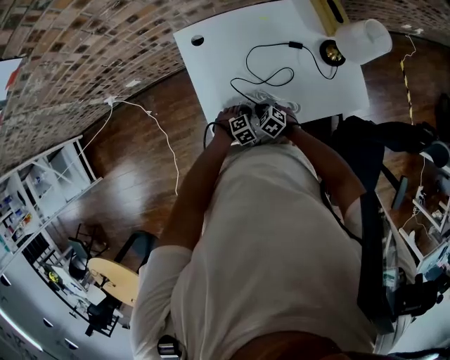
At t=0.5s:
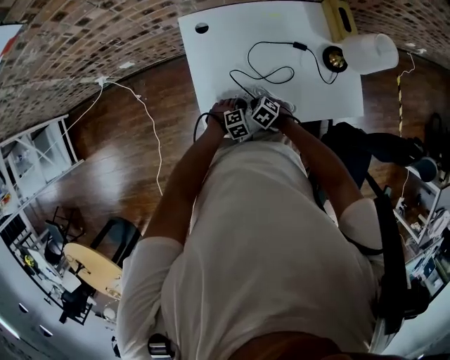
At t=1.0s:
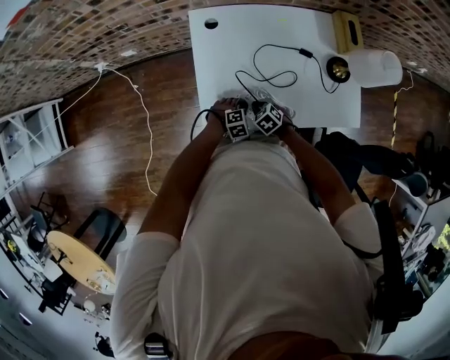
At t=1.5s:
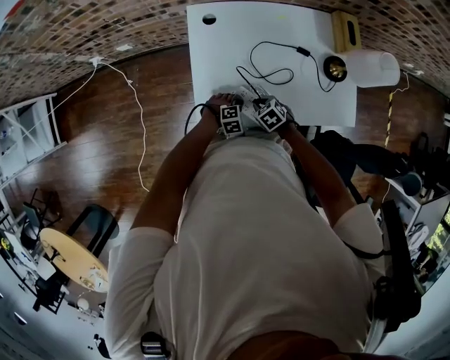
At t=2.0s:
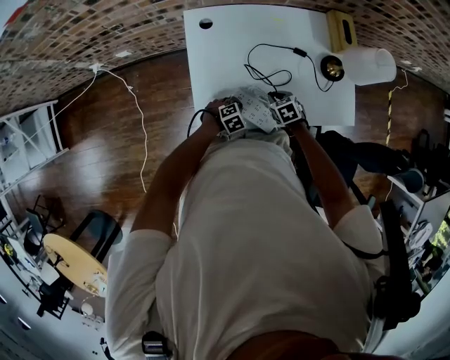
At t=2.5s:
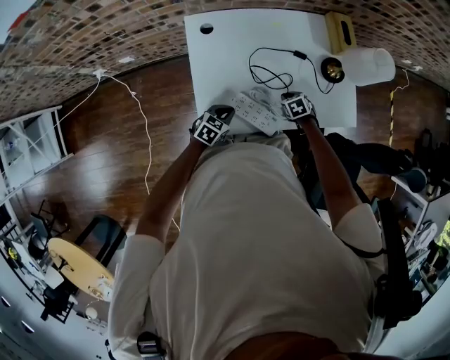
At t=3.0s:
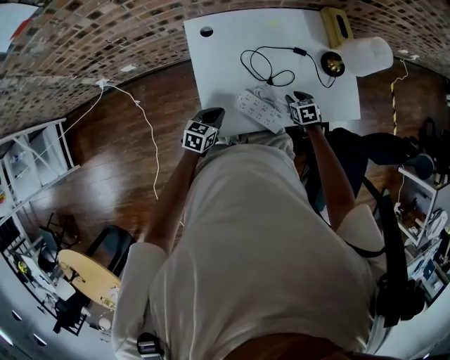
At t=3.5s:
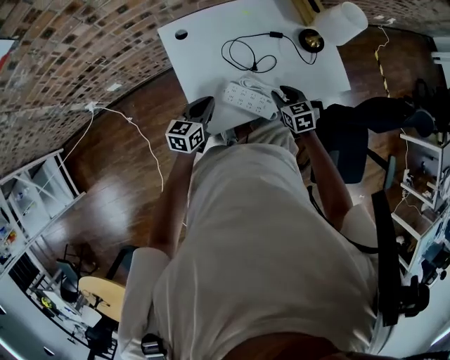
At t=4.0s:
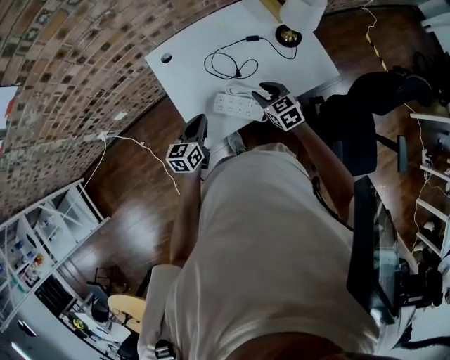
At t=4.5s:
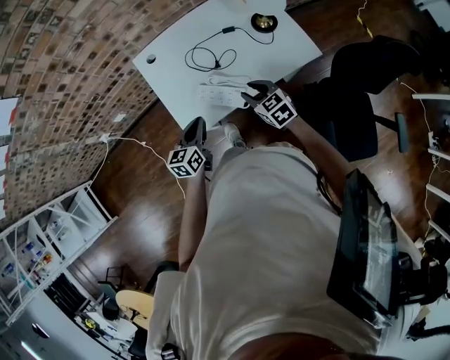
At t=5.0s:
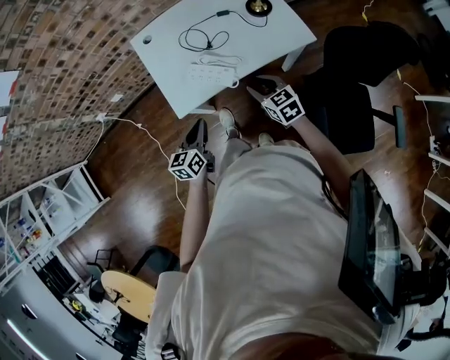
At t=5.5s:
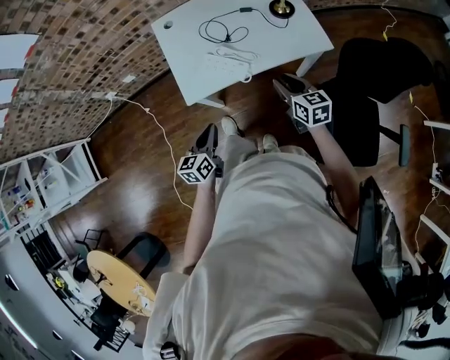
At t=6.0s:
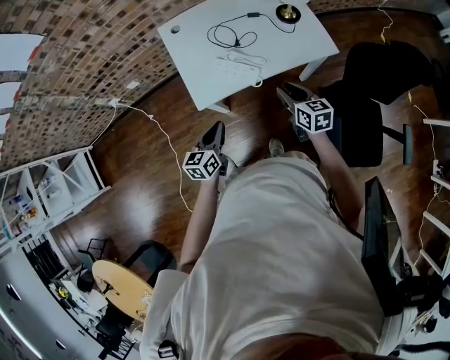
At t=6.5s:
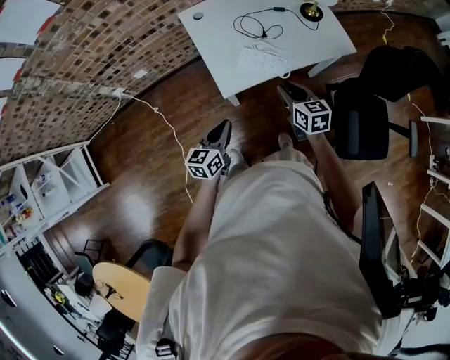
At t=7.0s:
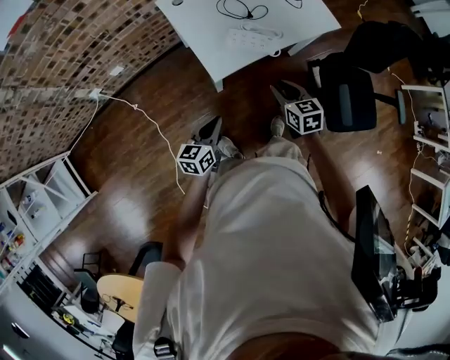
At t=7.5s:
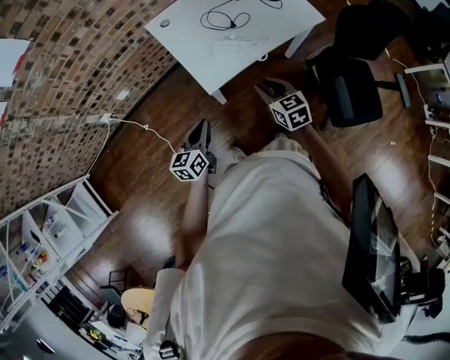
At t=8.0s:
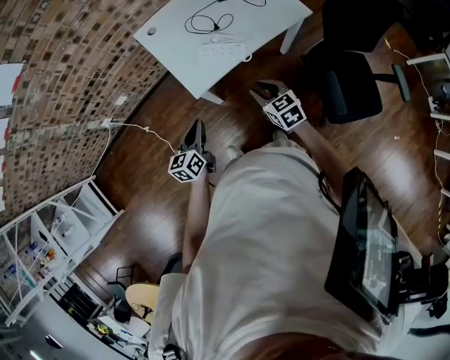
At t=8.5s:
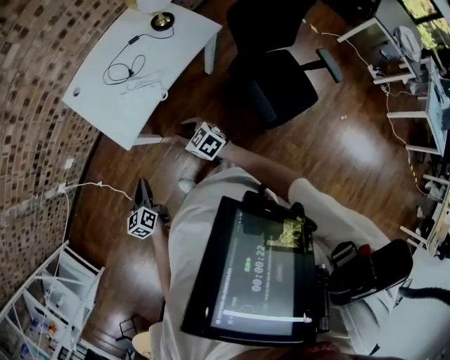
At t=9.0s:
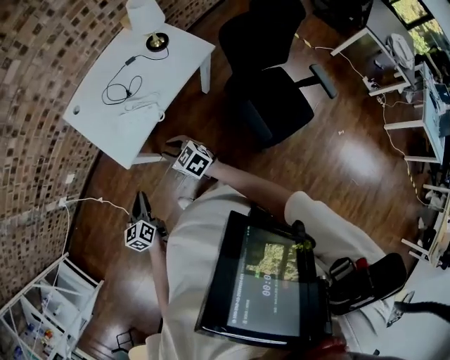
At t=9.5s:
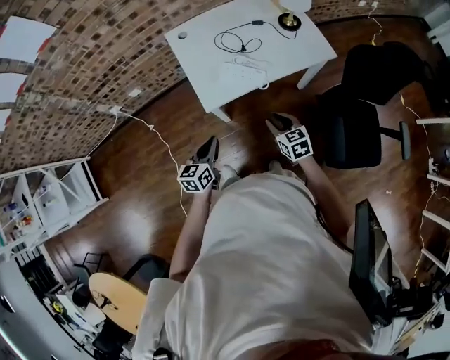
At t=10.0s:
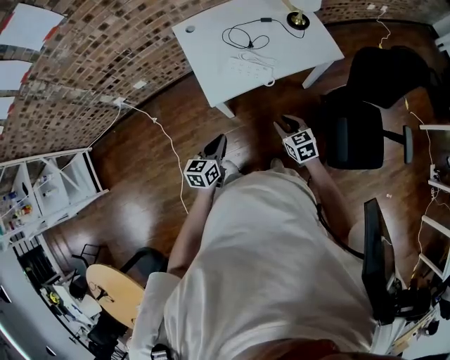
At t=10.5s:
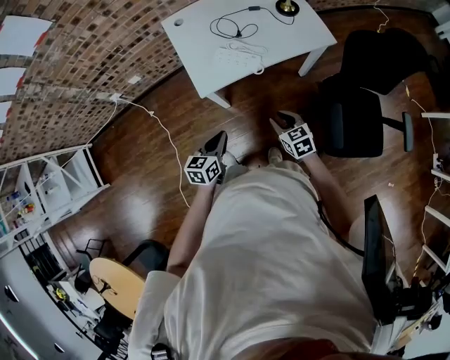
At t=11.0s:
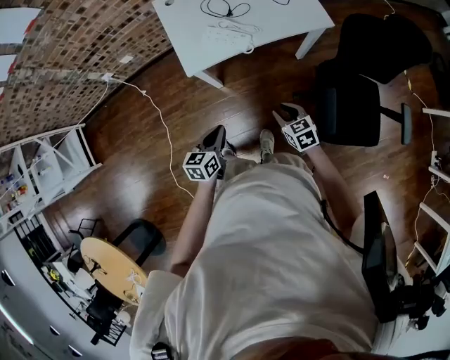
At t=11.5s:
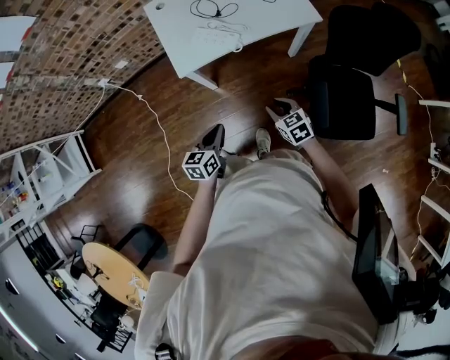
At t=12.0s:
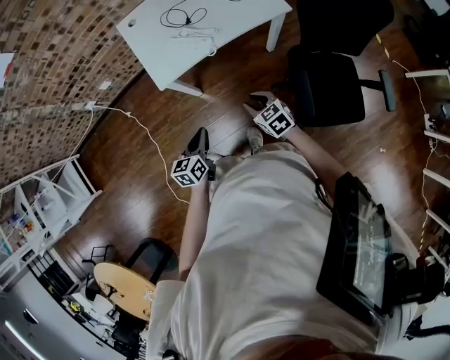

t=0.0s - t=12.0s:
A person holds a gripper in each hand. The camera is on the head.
t=0.0s - t=2.0s: The right gripper changes place by roughly 10 cm.
t=2.0s - t=4.0s: Both grippers travel together upward, some 20 cm. The right gripper changes its angle by roughly 30 degrees, and opens up; the left gripper points its fingers about 40 degrees further upward.
t=4.0s - t=6.0s: The right gripper heads backward and to the right, covering roughly 20 cm, and turns by some 20 degrees. Meanwhile the left gripper shifts roughly 25 cm backward.
t=6.0s - t=8.0s: The right gripper heads to the left and backward, covering about 15 cm. The left gripper heads to the left, covering some 10 cm.
t=8.0s - t=10.0s: The left gripper ends up approximately 5 cm from where it was. The right gripper shifts by approximately 5 cm.
t=10.0s - t=12.0s: The left gripper goes about 15 cm to the right and backward. Meanwhile the right gripper travels backward and to the right by about 15 cm.

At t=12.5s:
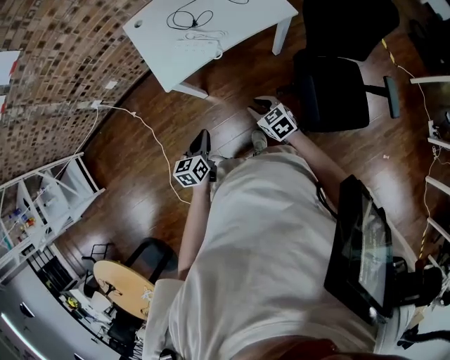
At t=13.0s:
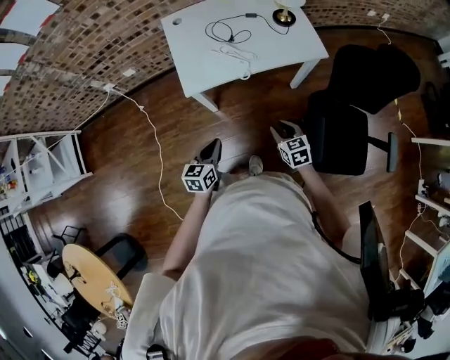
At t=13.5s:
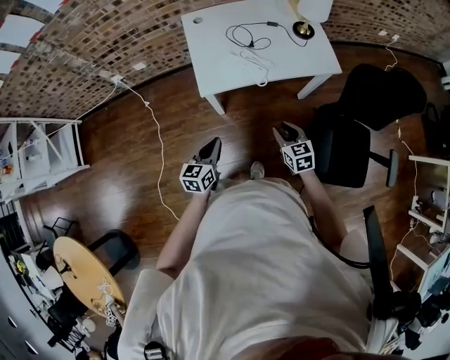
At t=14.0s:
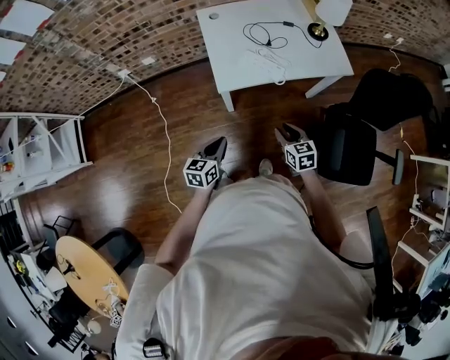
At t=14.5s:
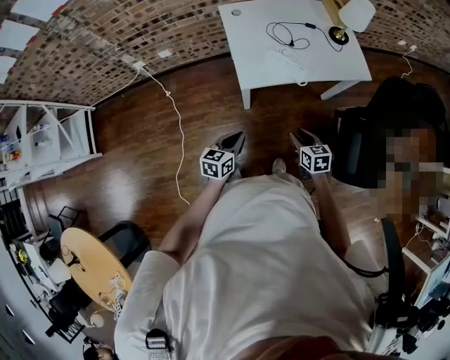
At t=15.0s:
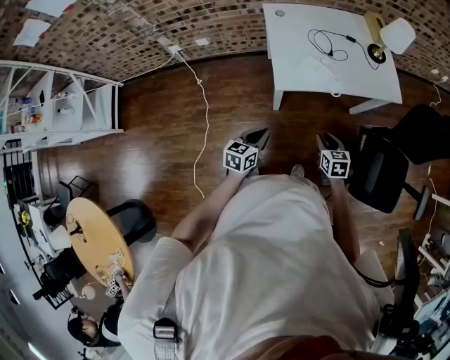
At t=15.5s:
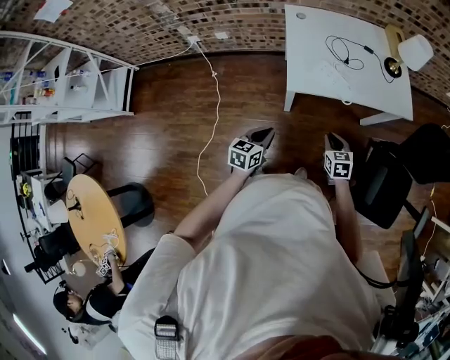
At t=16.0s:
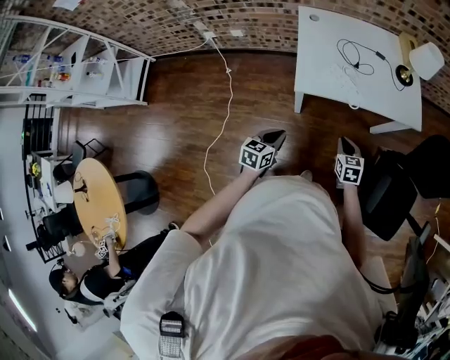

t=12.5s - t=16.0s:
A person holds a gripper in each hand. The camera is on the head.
t=12.5s - t=14.5s: Both grippers move to the left, roughly 15 cm.
t=14.5s - t=16.0s: The right gripper heads forward, covering roughly 5 cm, and closes up.

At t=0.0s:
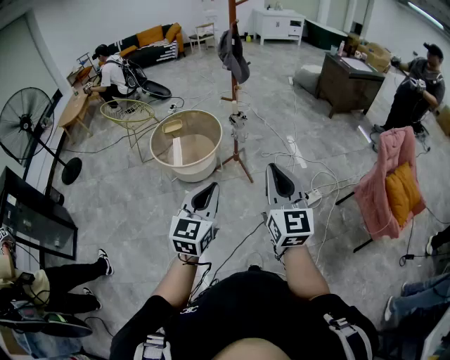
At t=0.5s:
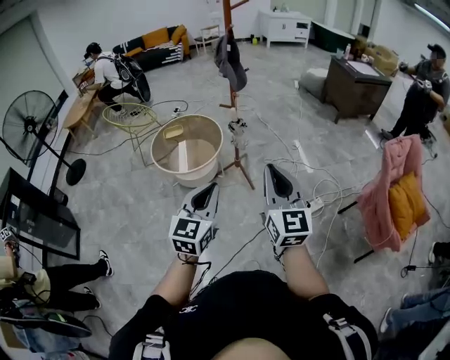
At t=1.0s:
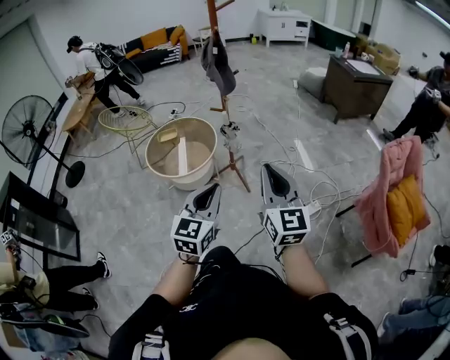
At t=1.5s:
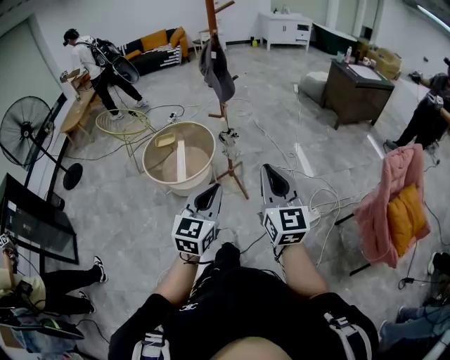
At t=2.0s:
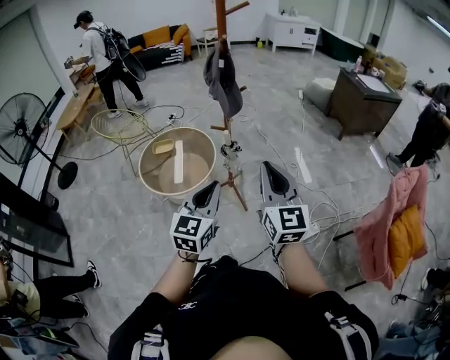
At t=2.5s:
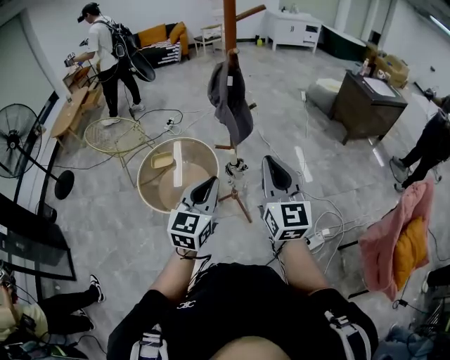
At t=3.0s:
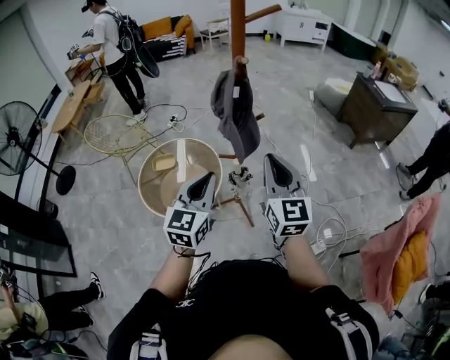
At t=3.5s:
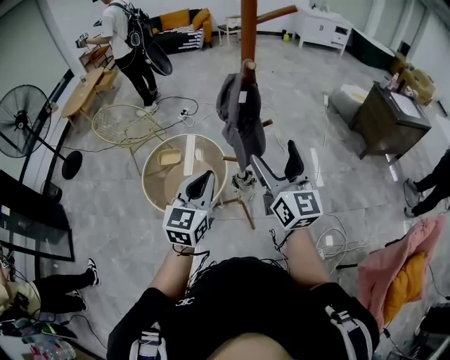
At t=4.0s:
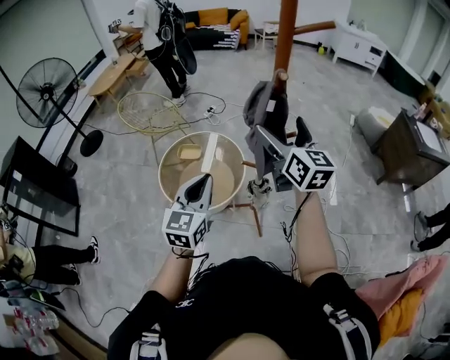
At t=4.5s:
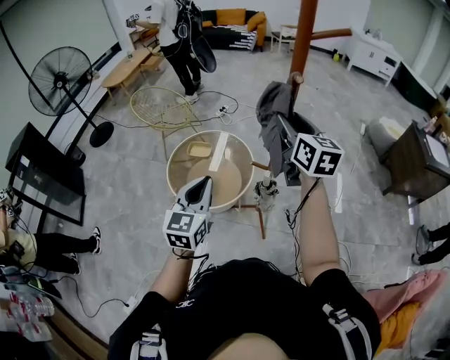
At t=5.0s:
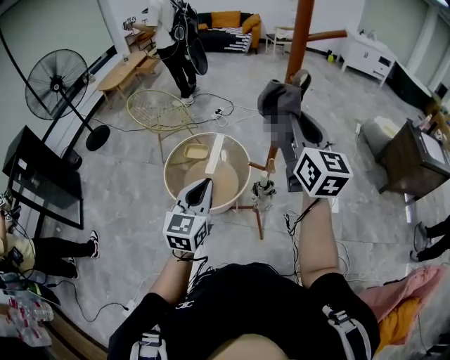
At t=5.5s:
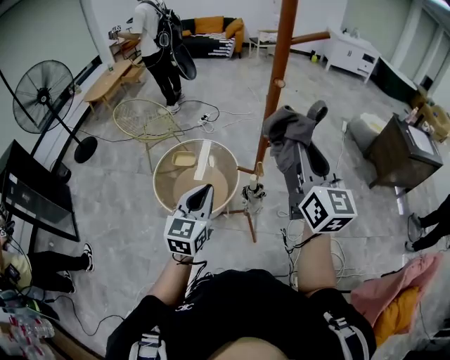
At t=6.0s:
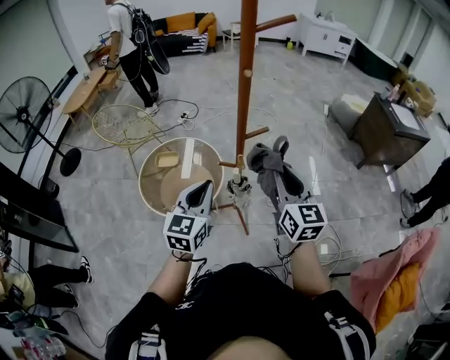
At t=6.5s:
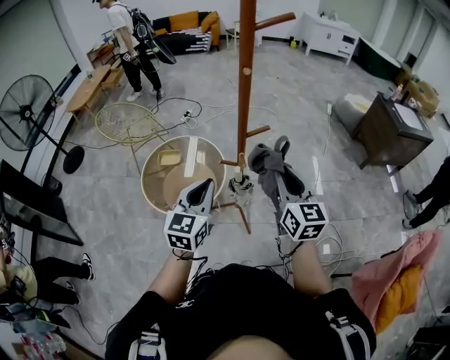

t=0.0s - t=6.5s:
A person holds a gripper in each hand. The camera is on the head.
t=0.0s - t=2.0s: Both grippers travel together forward, about 35 cm.
t=2.0s - t=4.5s: The left gripper heads forward, covering about 35 cm, and swivels approximately 20 degrees; the right gripper is displaced forward by roughly 50 cm, swivels about 30 degrees, and opens, then closes again.
t=4.5s - t=6.5s: The right gripper moves backward, to the right and downward, about 20 cm; the left gripper is displaced to the right by about 10 cm.

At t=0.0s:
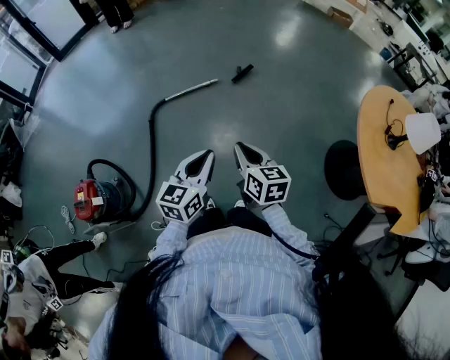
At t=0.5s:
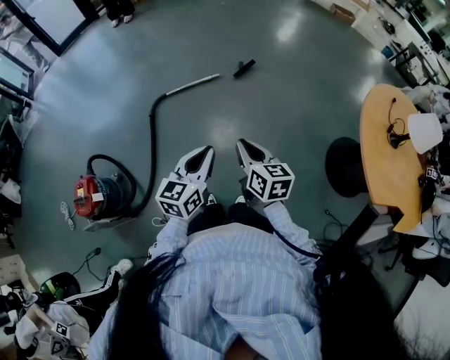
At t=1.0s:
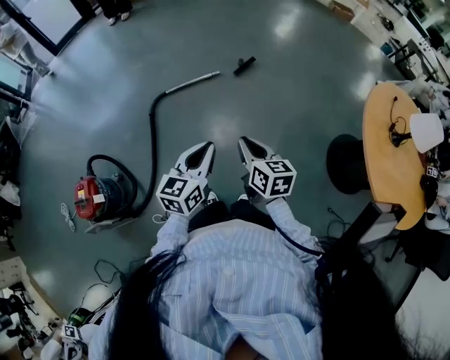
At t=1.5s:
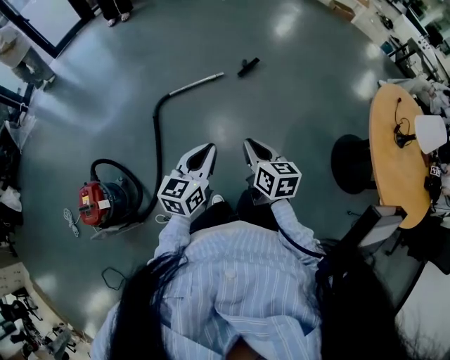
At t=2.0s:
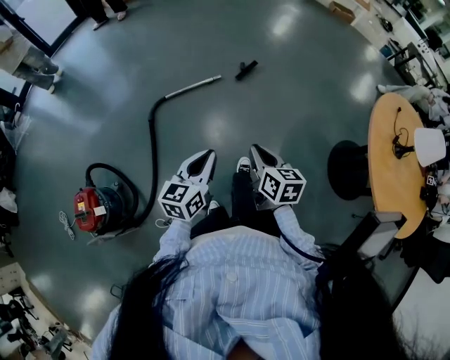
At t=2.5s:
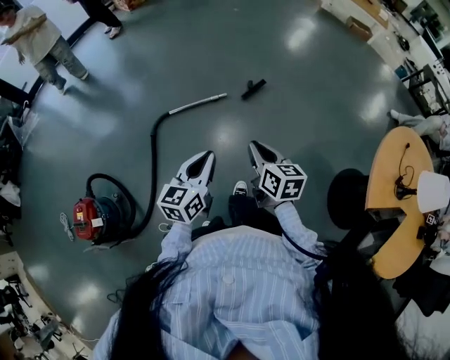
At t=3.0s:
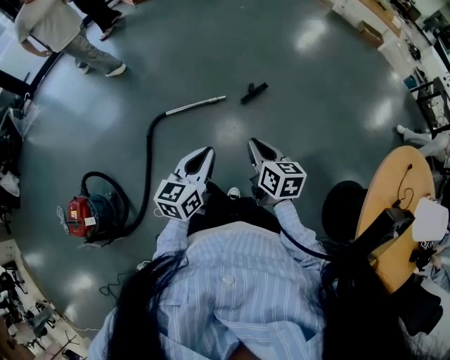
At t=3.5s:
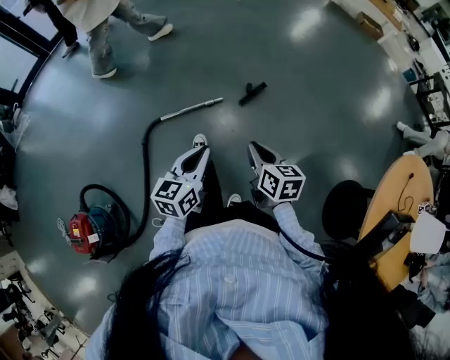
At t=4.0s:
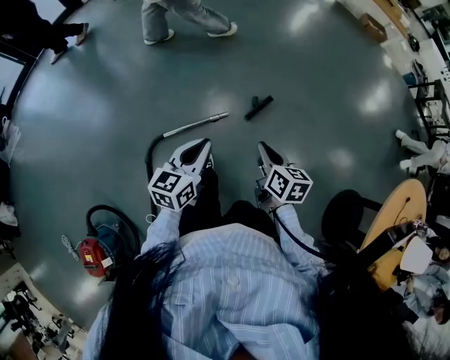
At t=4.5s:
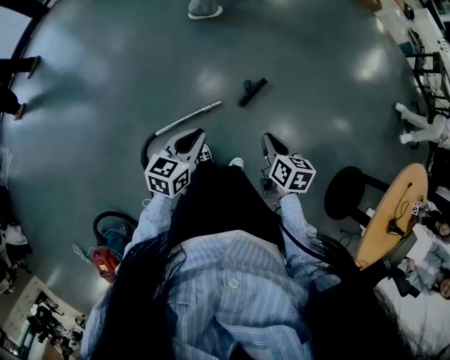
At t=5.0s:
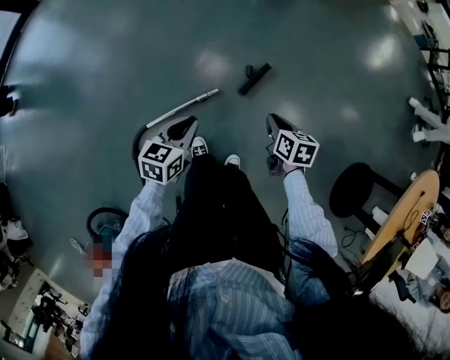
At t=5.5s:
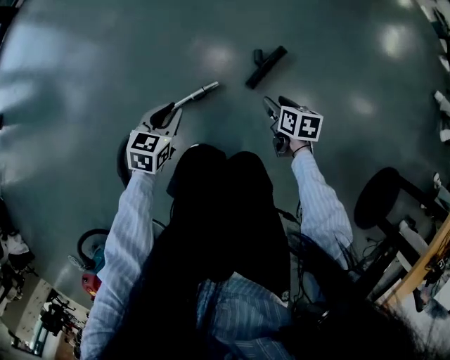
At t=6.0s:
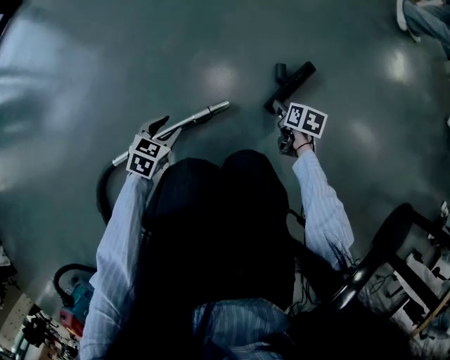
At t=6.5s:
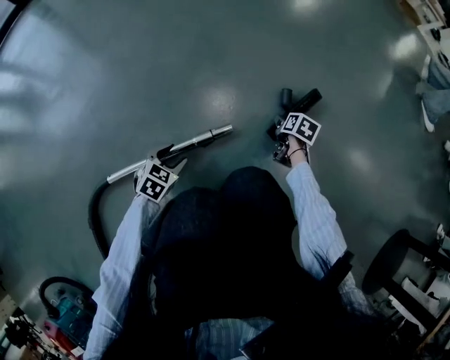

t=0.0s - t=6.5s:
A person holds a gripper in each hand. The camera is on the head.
t=0.0s - t=2.0s: The left gripper shifts about 10 cm forward and to the left. Meanwhile the right gripper is displaced forward by some 10 cm.
t=2.0s - t=4.5s: Both grippers are carried forward, roughly 70 cm.
t=4.5s - t=6.5s: Both grippers move downward, approximately 80 cm. The right gripper swivels about 20 degrees, and opens up; the left gripper swivels some 40 degrees, and opens its fingers.
